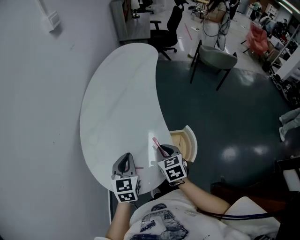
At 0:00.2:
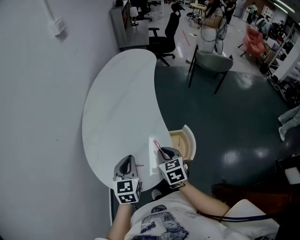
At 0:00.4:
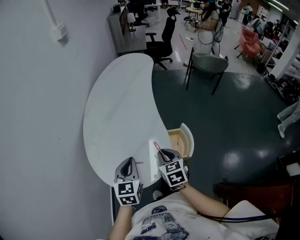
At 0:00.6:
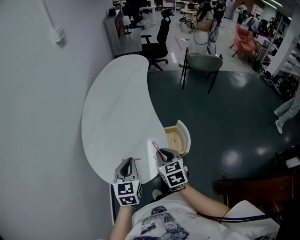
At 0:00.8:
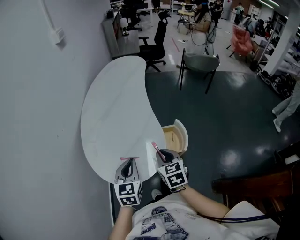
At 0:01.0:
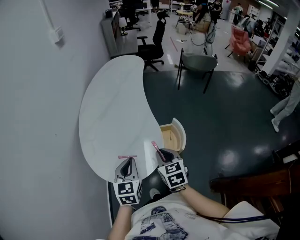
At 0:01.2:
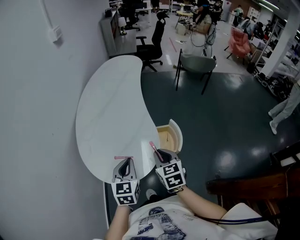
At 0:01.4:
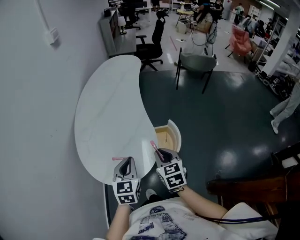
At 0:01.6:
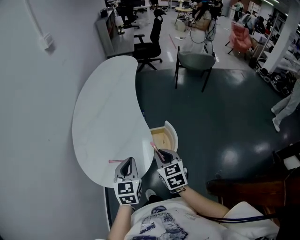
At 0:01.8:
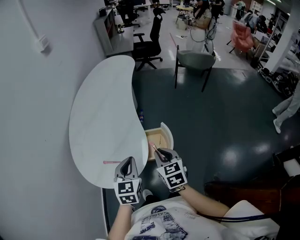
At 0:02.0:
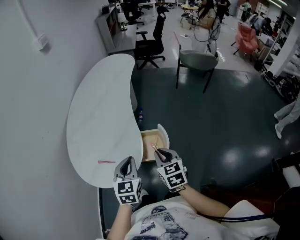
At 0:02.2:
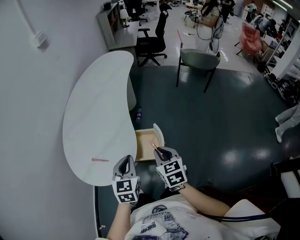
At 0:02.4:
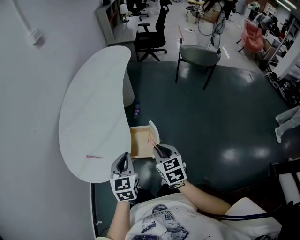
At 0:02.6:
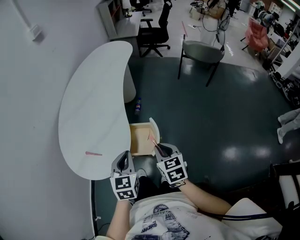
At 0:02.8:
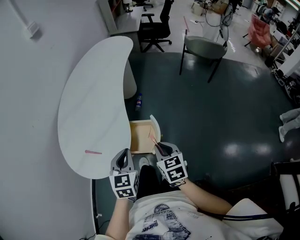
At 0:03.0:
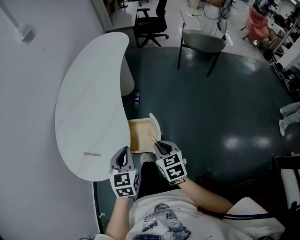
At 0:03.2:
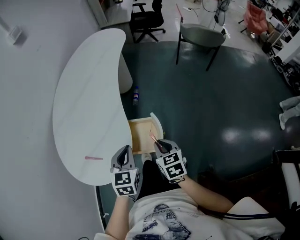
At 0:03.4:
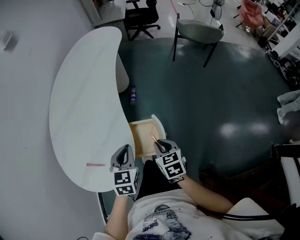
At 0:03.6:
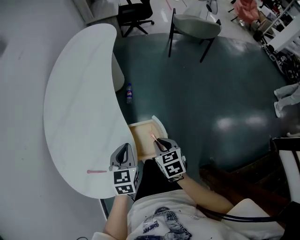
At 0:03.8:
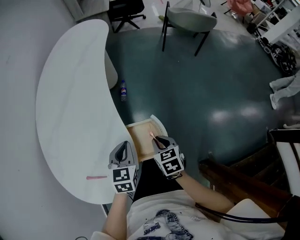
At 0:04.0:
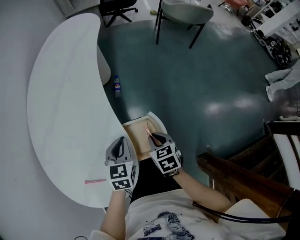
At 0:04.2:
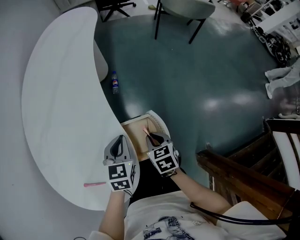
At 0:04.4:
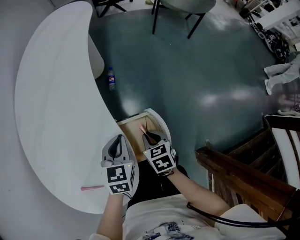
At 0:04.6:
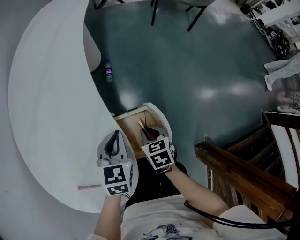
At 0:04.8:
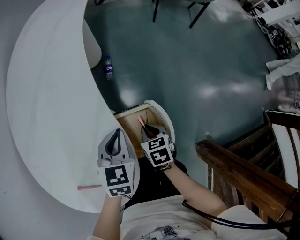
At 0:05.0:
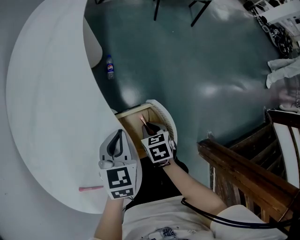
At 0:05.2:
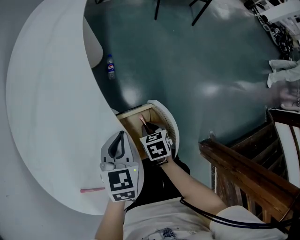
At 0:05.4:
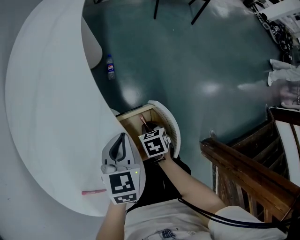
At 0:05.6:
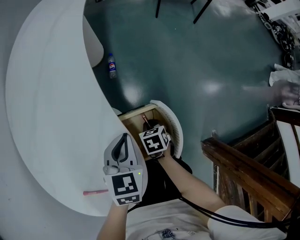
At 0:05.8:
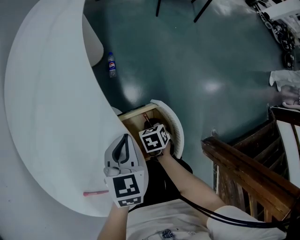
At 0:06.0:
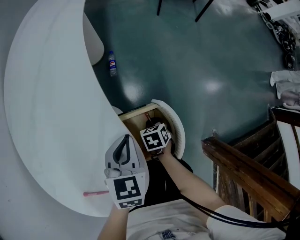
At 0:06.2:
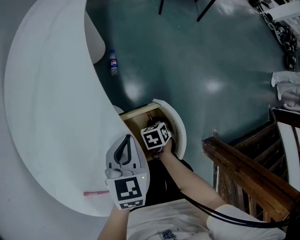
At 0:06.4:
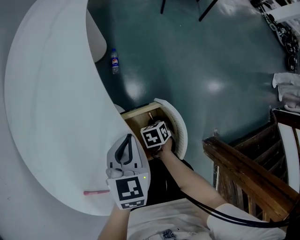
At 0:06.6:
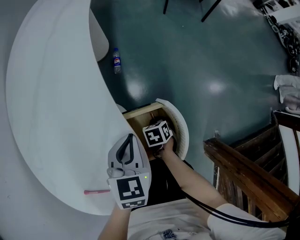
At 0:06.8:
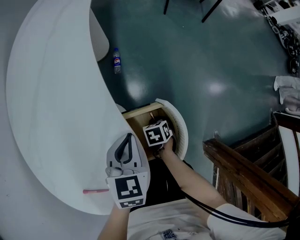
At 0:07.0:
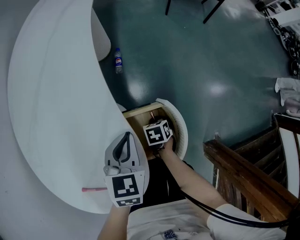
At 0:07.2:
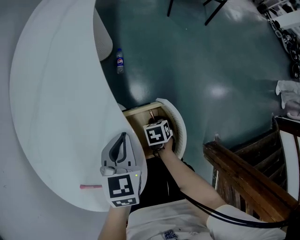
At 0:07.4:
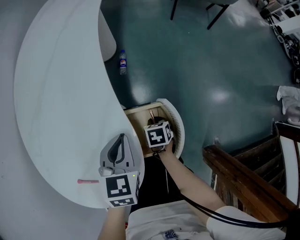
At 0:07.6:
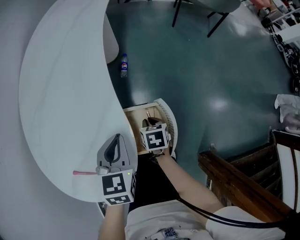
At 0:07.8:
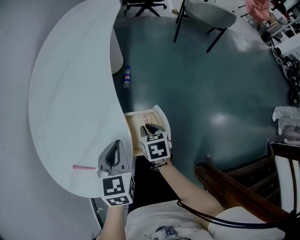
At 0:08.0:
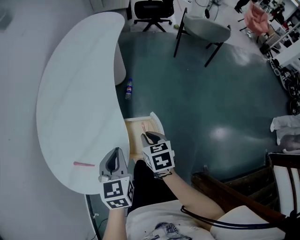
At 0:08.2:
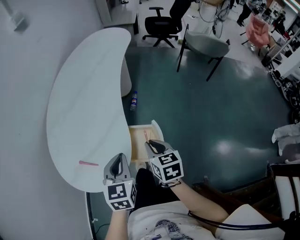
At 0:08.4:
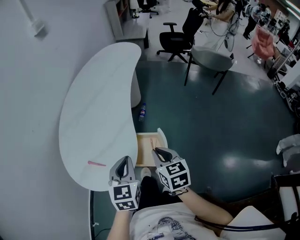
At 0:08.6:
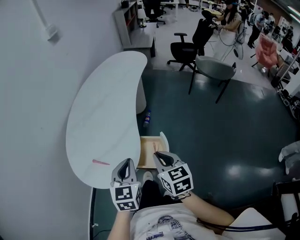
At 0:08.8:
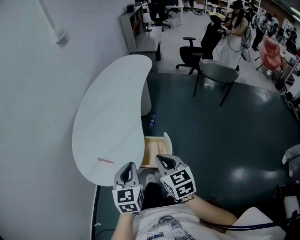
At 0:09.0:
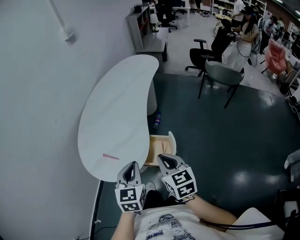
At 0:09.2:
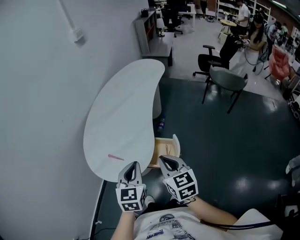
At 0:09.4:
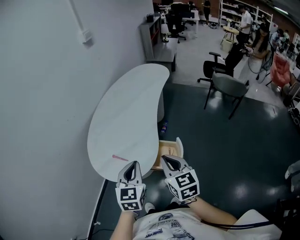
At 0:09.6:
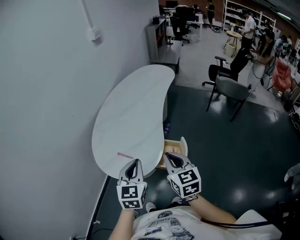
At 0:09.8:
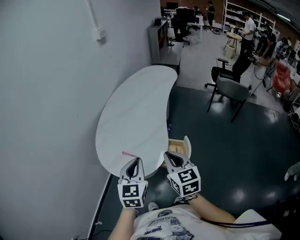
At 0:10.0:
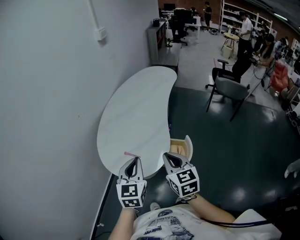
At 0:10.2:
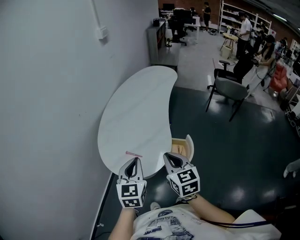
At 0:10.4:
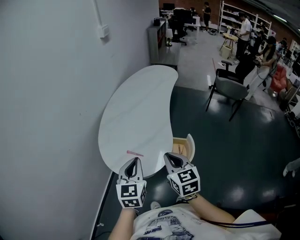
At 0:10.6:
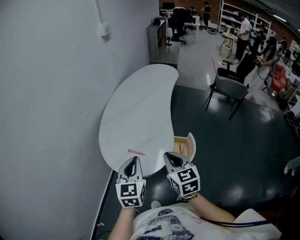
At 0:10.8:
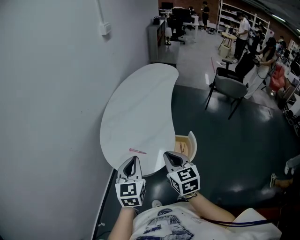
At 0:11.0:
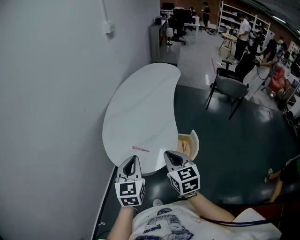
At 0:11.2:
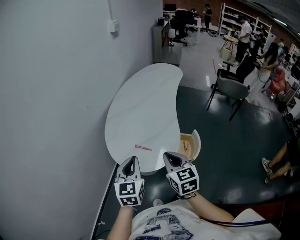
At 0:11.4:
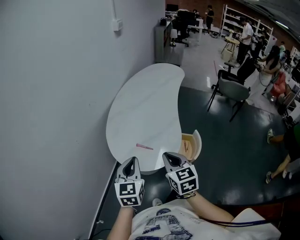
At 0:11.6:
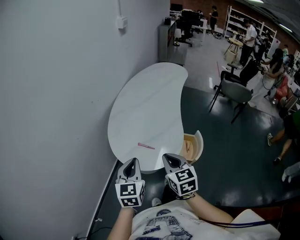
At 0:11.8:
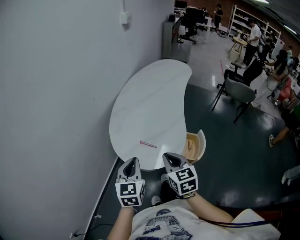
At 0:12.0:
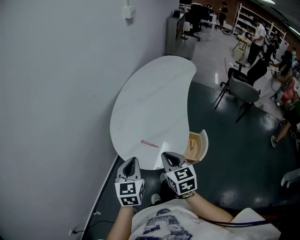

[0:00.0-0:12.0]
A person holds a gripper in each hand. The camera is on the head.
0:00.0 to 0:01.6: The right gripper heads backward, to the right and upward, covering approximately 15 cm; the left gripper goes roughly 15 cm backward and to the right.
0:01.6 to 0:03.0: Both grippers travel together to the right and downward, roughly 20 cm.
0:03.0 to 0:04.4: Both grippers travel together downward and forward, approximately 25 cm. The left gripper rotates about 20 degrees; the right gripper rotates some 20 degrees.
0:04.4 to 0:06.0: The right gripper moves downward, approximately 15 cm.
0:06.0 to 0:07.6: The right gripper heads upward, covering about 5 cm.
0:07.6 to 0:09.0: The grippers both shift upward and backward by some 40 cm. The left gripper changes its angle by approximately 20 degrees. Meanwhile the right gripper points its fingers approximately 40 degrees further upward.
0:09.0 to 0:10.4: Both grippers move to the left, about 15 cm.
0:10.4 to 0:12.0: Both grippers travel together to the left and downward, approximately 15 cm.

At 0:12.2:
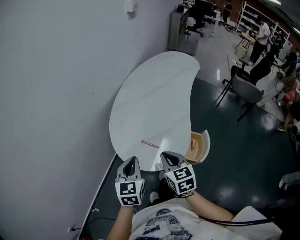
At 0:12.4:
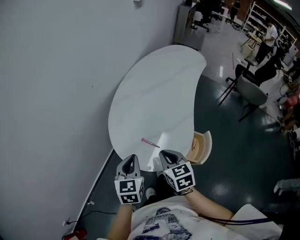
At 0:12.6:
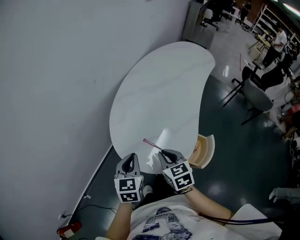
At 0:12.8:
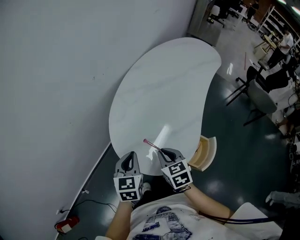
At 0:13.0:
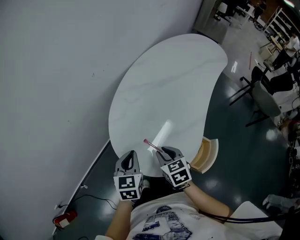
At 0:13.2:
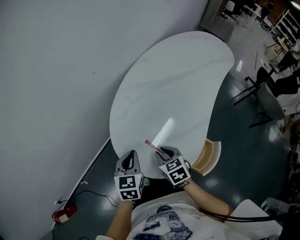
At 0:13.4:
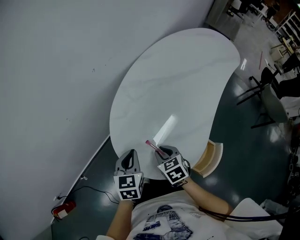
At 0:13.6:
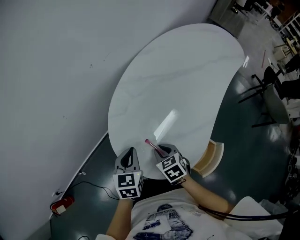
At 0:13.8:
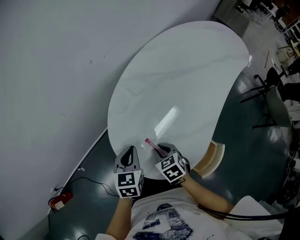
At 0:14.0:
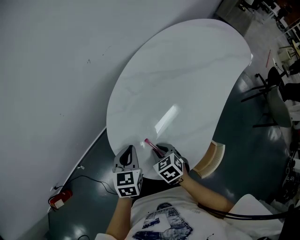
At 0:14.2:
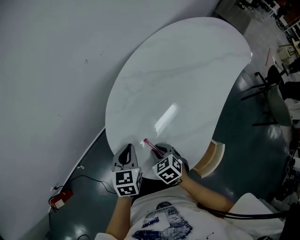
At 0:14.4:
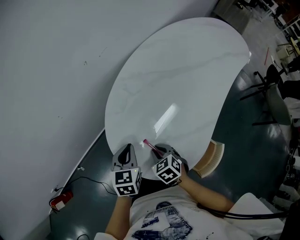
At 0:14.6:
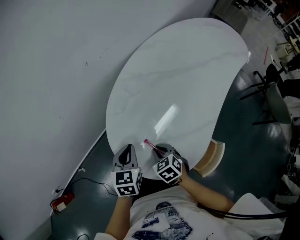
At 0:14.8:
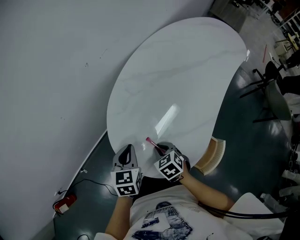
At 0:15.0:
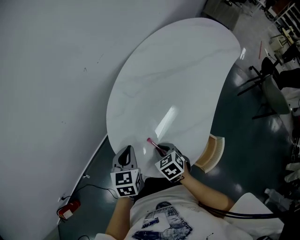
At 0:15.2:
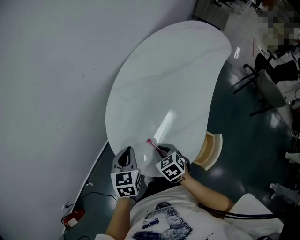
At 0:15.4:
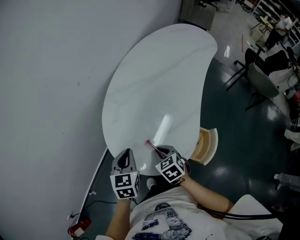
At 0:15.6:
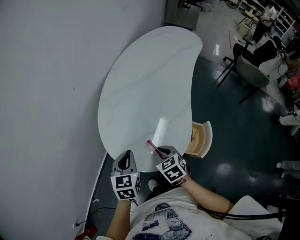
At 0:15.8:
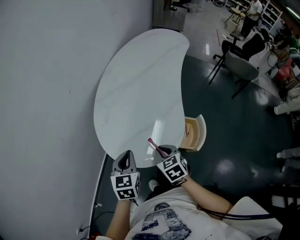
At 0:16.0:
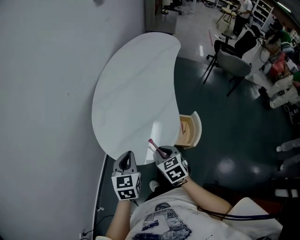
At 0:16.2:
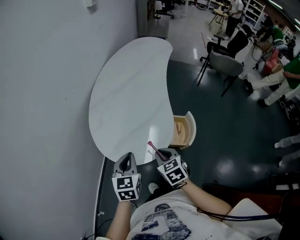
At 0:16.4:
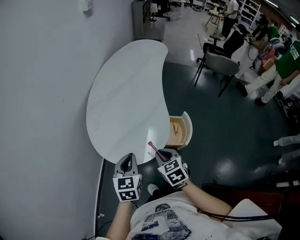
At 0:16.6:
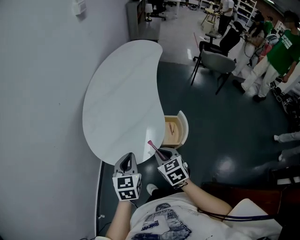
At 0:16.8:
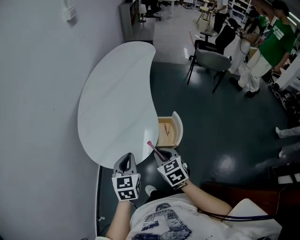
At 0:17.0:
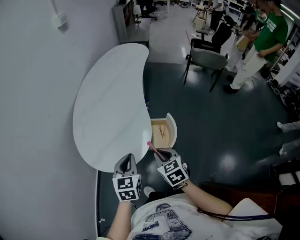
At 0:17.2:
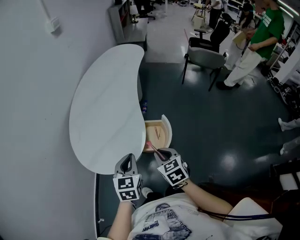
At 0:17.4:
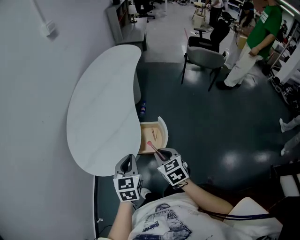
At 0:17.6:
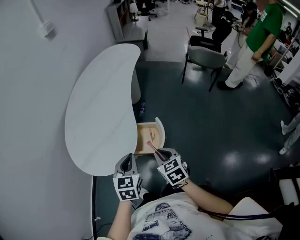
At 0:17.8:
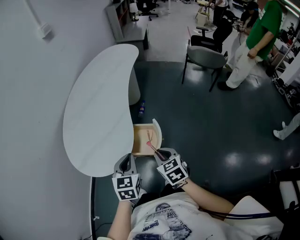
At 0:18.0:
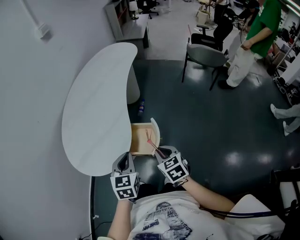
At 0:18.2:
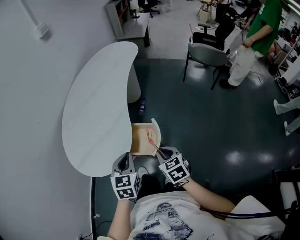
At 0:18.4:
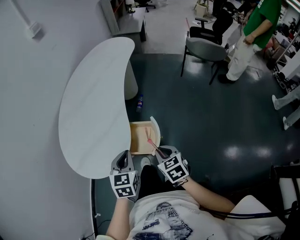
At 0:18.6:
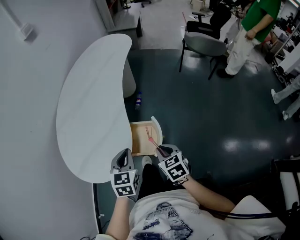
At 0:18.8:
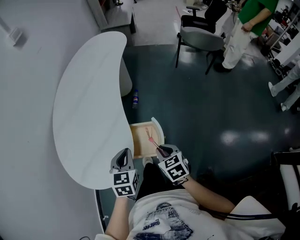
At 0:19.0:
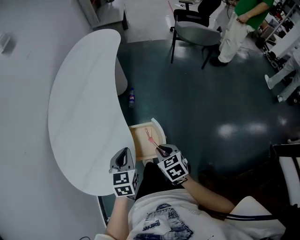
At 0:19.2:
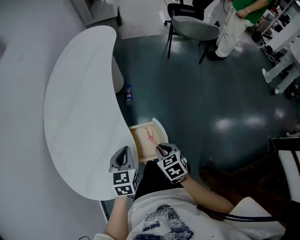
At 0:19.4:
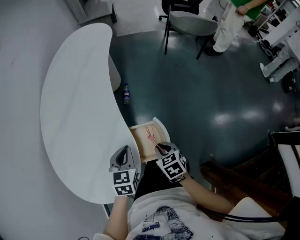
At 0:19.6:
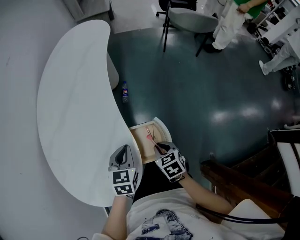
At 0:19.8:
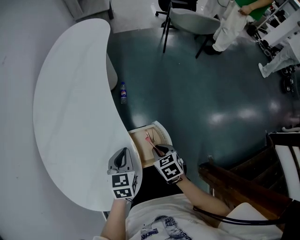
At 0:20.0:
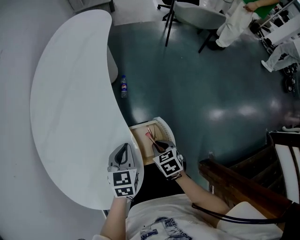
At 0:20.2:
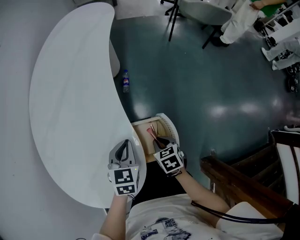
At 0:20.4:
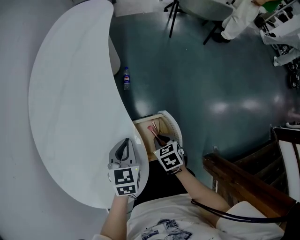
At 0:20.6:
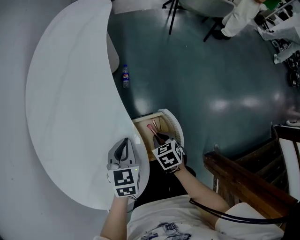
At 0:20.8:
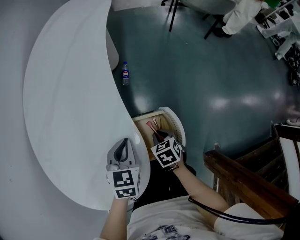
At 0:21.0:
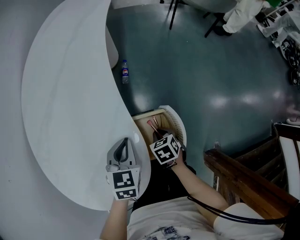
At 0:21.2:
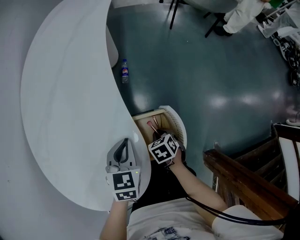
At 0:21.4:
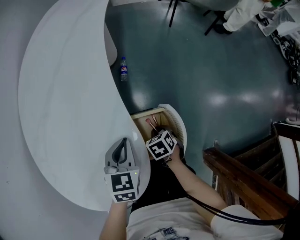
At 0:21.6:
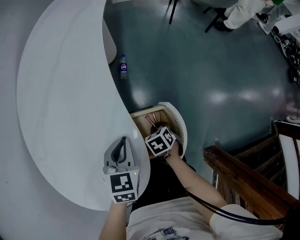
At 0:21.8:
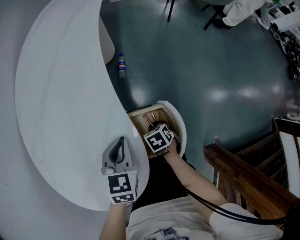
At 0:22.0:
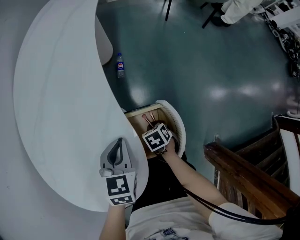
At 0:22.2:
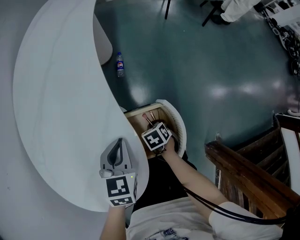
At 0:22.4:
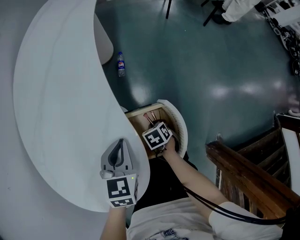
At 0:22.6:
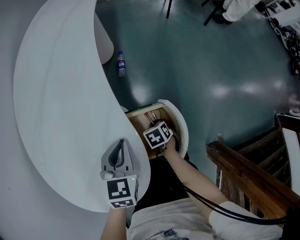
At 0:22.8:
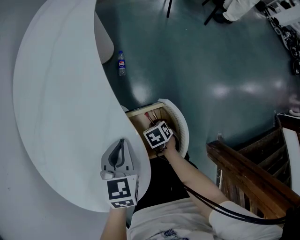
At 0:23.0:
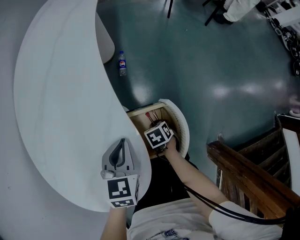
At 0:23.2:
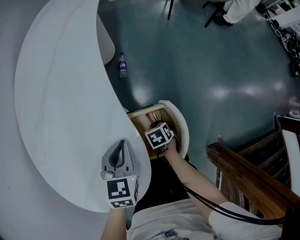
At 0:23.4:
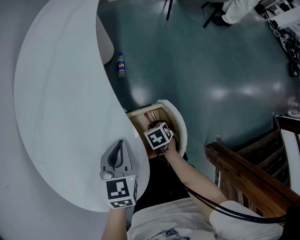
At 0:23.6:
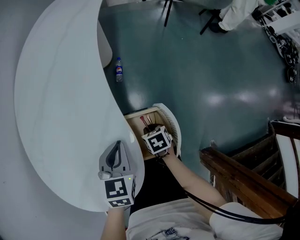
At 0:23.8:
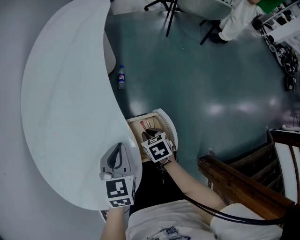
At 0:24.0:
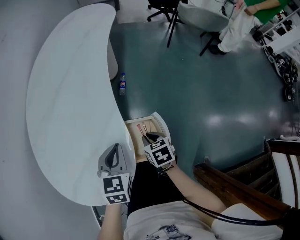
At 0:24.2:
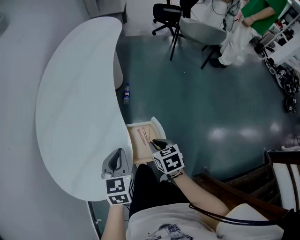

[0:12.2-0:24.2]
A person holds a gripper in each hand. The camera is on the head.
0:12.2 to 0:13.8: Both grippers move downward, about 20 cm. The left gripper changes its angle by roughly 30 degrees; the right gripper turns by some 40 degrees.
0:13.8 to 0:15.2: The grippers stay close to where they were, moving slightly.
0:15.2 to 0:16.6: The left gripper shifts by approximately 20 cm, and turns by roughly 30 degrees; the right gripper moves approximately 25 cm, and swivels some 30 degrees.
0:16.6 to 0:18.2: Both grippers travel together to the right, about 25 cm.
0:18.2 to 0:19.8: The right gripper shifts some 25 cm downward and forward, and rotates about 20 degrees. The left gripper heads forward and downward, covering some 25 cm, and turns by roughly 20 degrees.
0:19.8 to 0:21.2: The left gripper shifts by roughly 5 cm, while the right gripper heads downward, covering approximately 15 cm.
0:21.2 to 0:22.6: The right gripper shifts some 5 cm downward.
0:22.6 to 0:24.2: The left gripper shifts about 10 cm upward; the right gripper moves upward, about 20 cm, and turns by roughly 20 degrees.
